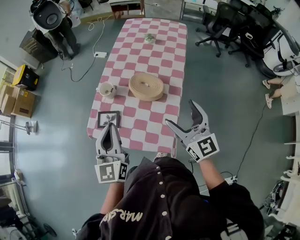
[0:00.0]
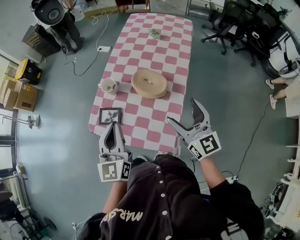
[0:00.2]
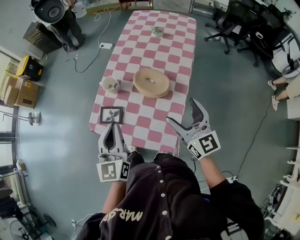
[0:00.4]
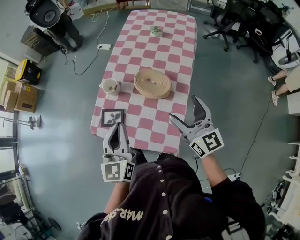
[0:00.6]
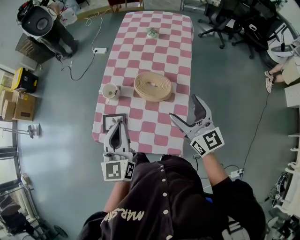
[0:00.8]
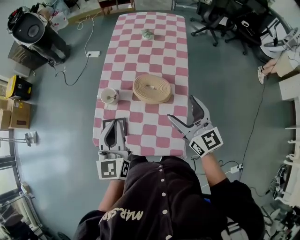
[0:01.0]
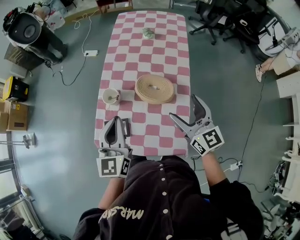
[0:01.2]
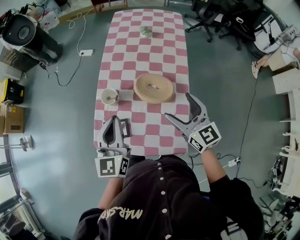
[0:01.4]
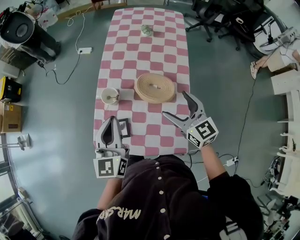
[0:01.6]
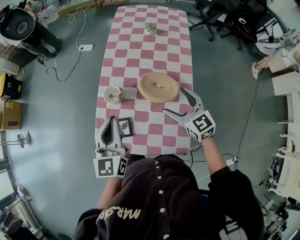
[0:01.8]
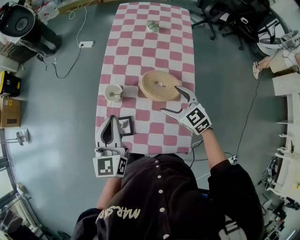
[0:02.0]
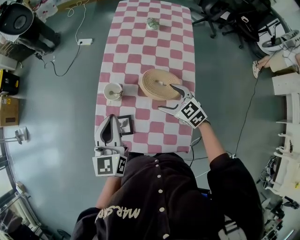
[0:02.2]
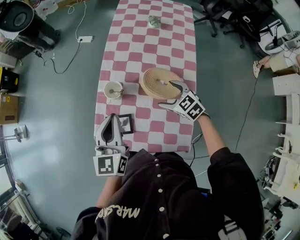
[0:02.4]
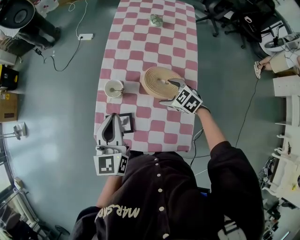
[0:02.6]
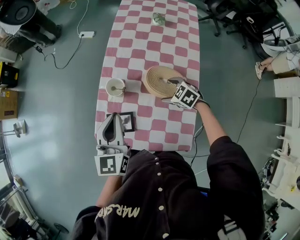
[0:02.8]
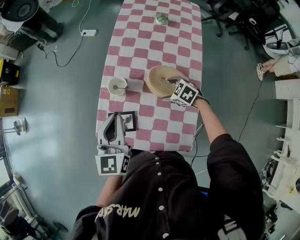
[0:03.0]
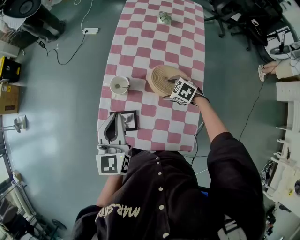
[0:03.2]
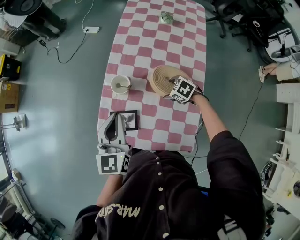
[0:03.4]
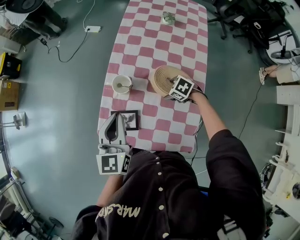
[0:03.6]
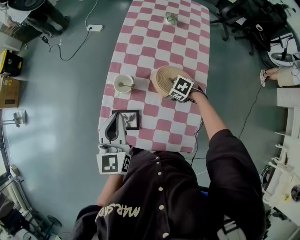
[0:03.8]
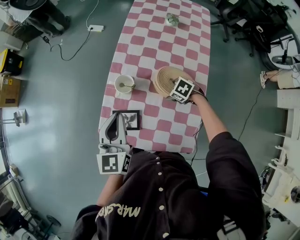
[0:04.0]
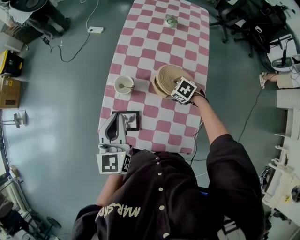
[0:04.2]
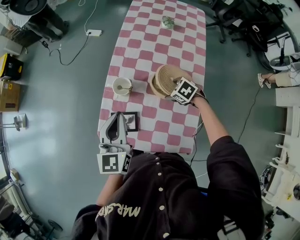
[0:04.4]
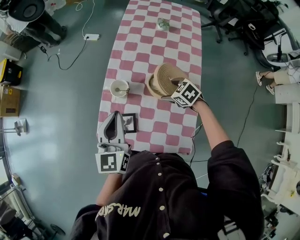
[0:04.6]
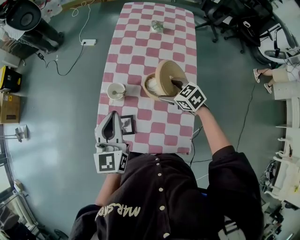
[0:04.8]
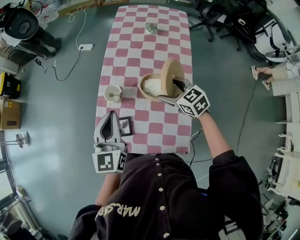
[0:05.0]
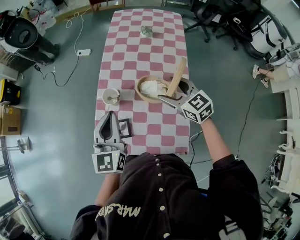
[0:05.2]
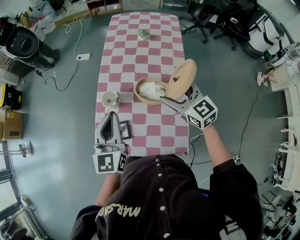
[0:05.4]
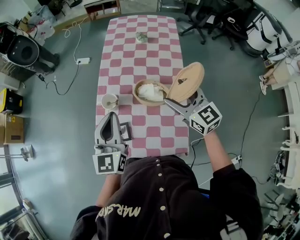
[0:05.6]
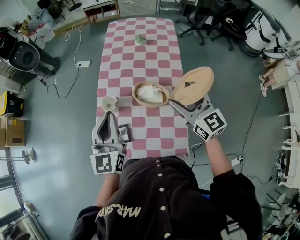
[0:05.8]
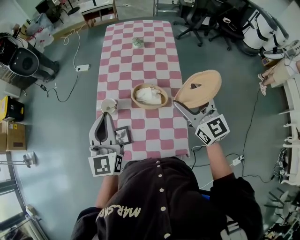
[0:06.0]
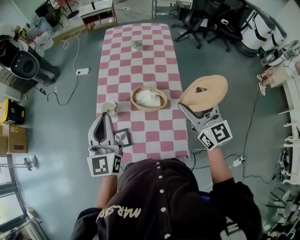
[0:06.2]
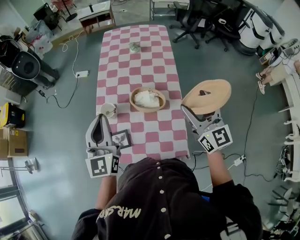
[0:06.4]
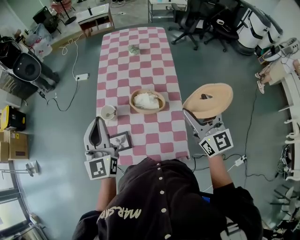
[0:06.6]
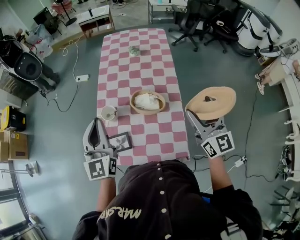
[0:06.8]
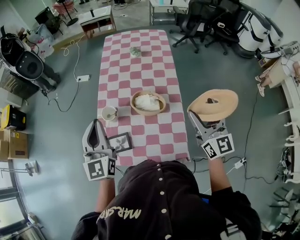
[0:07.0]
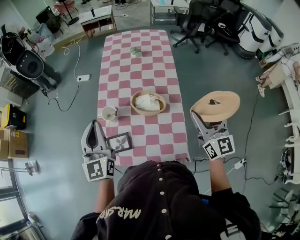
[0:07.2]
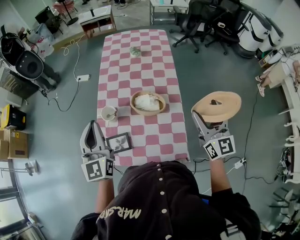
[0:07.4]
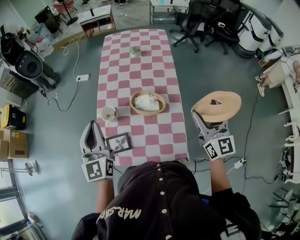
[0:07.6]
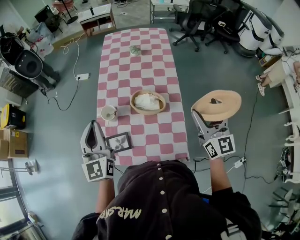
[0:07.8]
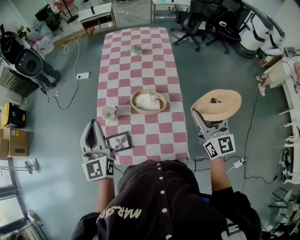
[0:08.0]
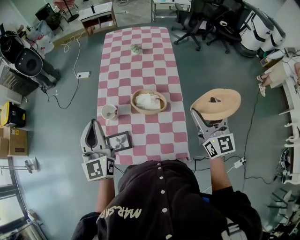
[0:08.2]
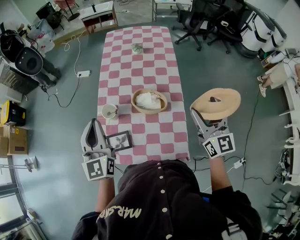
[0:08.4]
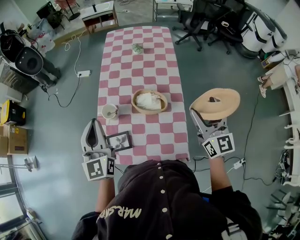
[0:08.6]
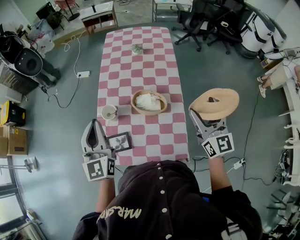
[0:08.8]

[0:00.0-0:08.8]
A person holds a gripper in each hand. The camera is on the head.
0:00.0 to 0:01.4: The left gripper is displaced forward by roughly 15 cm, while the right gripper shifts about 10 cm forward and to the left.
0:01.4 to 0:03.0: The right gripper goes some 25 cm downward, and angles its fingers downward, by some 50 degrees. The left gripper moves about 5 cm.
0:03.0 to 0:04.4: There are only small adjustments of the grippers.
0:04.4 to 0:05.8: The left gripper travels upward by some 10 cm. The right gripper goes some 30 cm upward, and tilts its fingers approximately 70 degrees upward.
0:05.8 to 0:07.4: The right gripper is displaced to the right and backward by roughly 15 cm, and rotates roughly 20 degrees. Meanwhile the left gripper ends up approximately 5 cm from where it was.
0:07.4 to 0:08.8: The grippers move only a little.

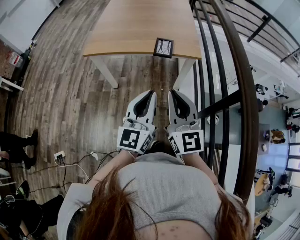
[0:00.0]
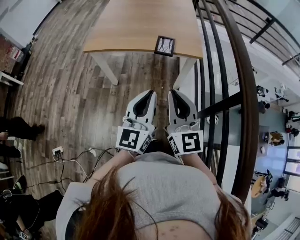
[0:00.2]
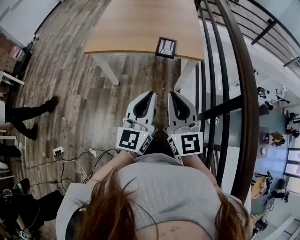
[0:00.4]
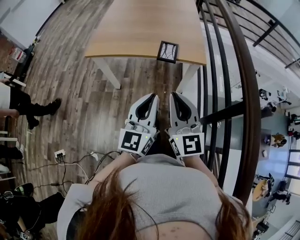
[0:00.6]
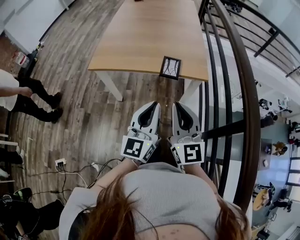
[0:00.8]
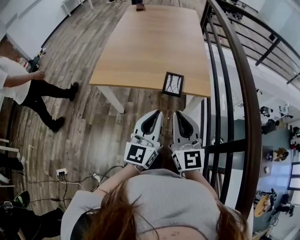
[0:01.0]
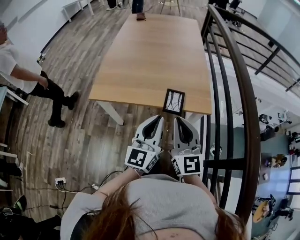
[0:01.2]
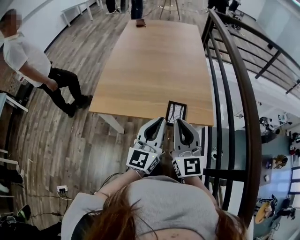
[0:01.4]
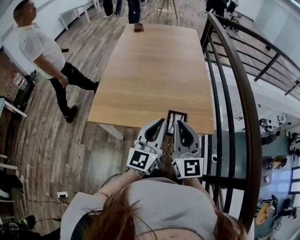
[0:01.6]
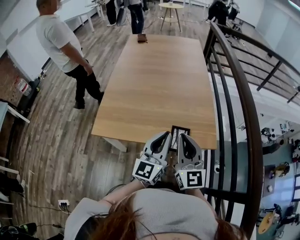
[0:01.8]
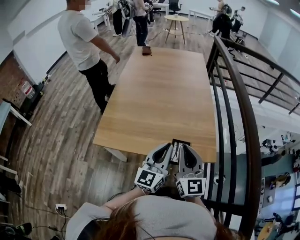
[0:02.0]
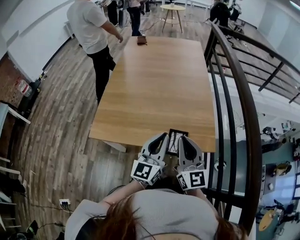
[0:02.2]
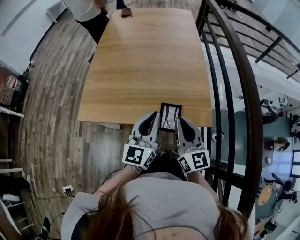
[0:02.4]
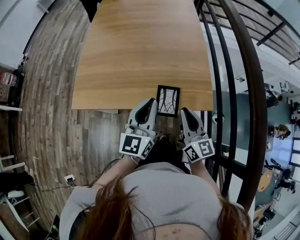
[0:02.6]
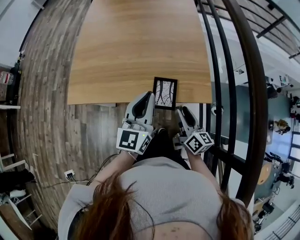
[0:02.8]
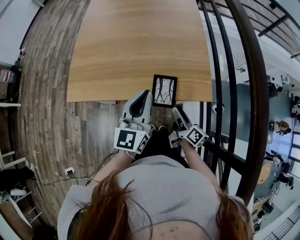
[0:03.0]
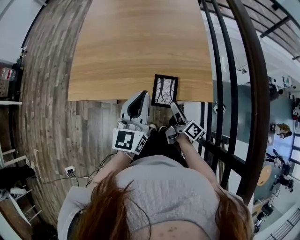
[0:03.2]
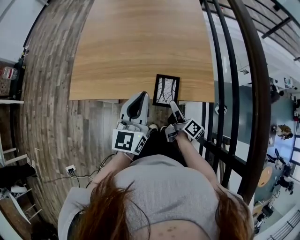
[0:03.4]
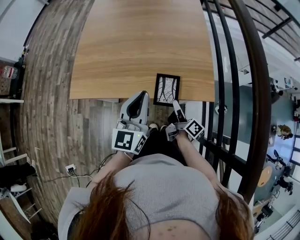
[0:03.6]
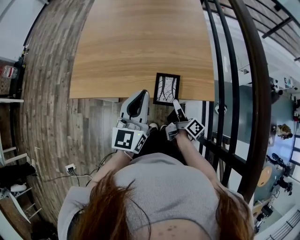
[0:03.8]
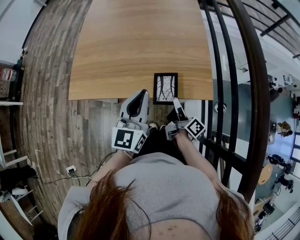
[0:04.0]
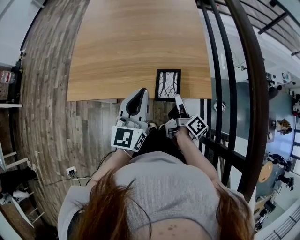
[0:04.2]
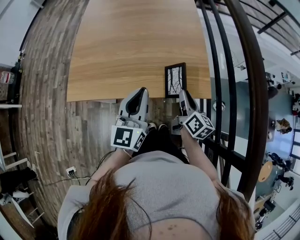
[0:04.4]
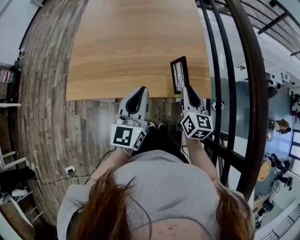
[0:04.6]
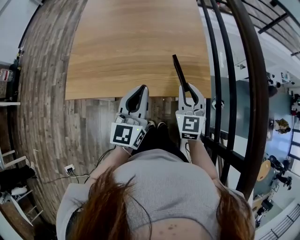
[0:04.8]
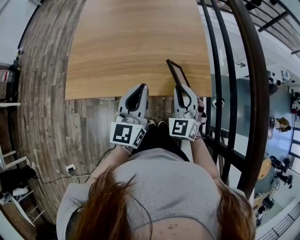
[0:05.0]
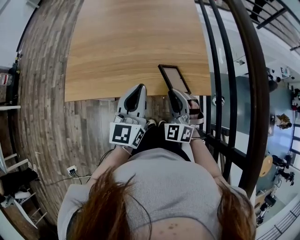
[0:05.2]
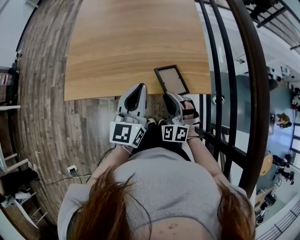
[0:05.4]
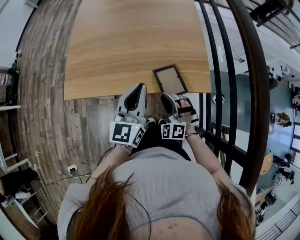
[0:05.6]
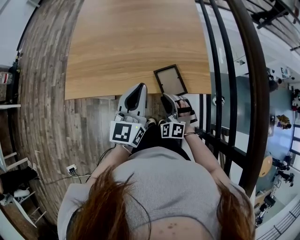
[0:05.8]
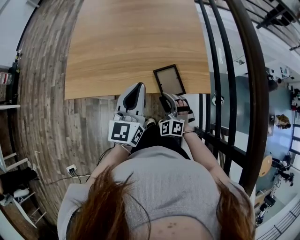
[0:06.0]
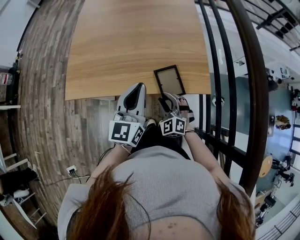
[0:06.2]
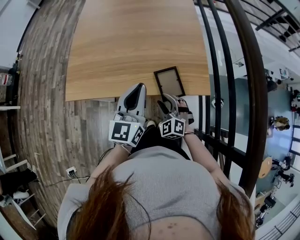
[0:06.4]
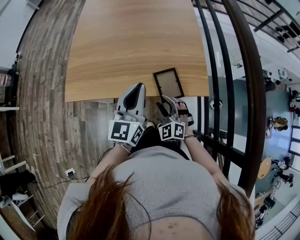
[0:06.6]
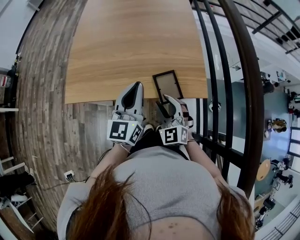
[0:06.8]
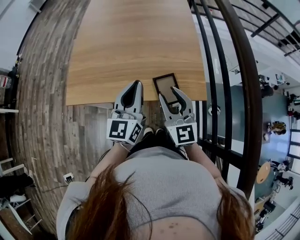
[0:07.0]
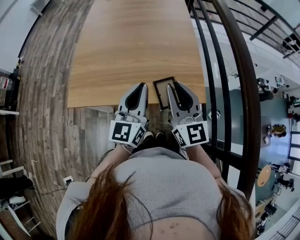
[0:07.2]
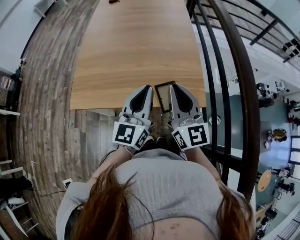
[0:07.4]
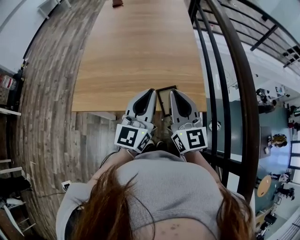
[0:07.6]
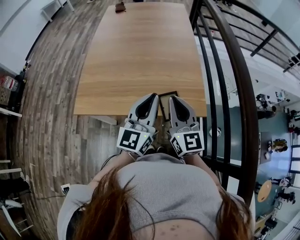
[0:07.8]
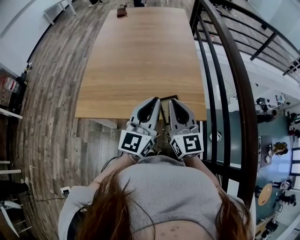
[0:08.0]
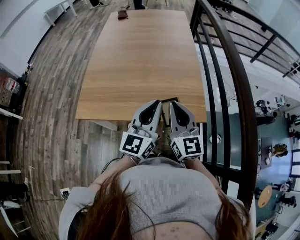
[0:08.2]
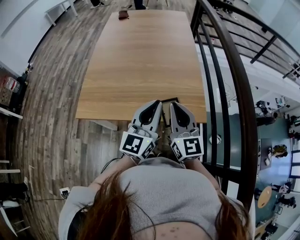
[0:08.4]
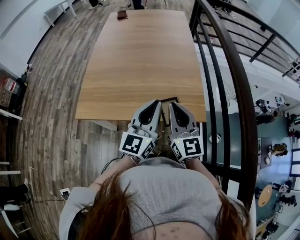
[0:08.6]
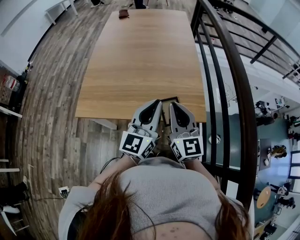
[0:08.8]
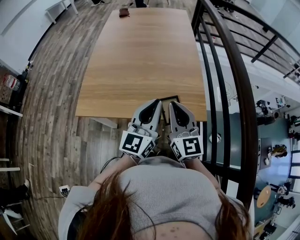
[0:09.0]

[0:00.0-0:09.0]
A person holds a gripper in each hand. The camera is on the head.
0:00.0 to 0:01.6: The two grippers go some 30 cm forward.
0:01.6 to 0:03.0: The right gripper goes roughly 25 cm downward, twists about 70 degrees clockwise, seen from behind, and opens. The left gripper moves downward, about 5 cm.
0:03.0 to 0:04.4: The right gripper shifts approximately 10 cm upward and forward, and closes.
0:04.4 to 0:06.0: The right gripper is displaced to the left and downward by some 15 cm, and twists roughly 100 degrees counterclockwise, seen from behind.
0:06.0 to 0:07.6: The right gripper heads upward, covering some 25 cm, rotates around the line of its fingers by approximately 50 degrees, clockwise from behind, and closes its fingers, while the left gripper is displaced upward by some 10 cm.
0:07.6 to 0:09.0: The grippers move only a little.

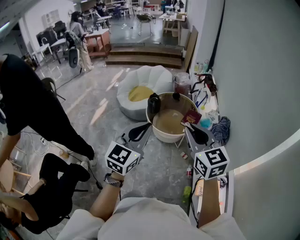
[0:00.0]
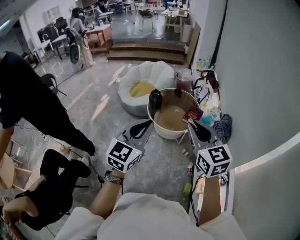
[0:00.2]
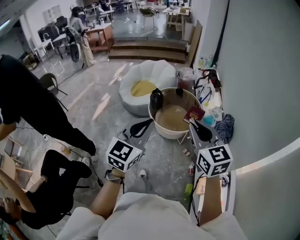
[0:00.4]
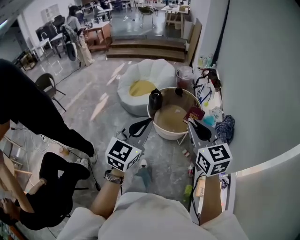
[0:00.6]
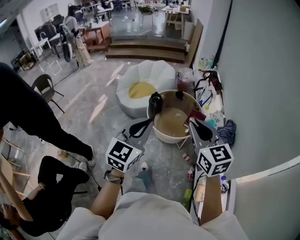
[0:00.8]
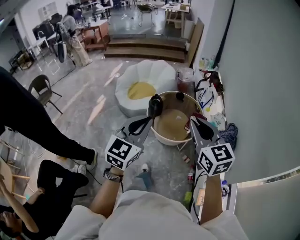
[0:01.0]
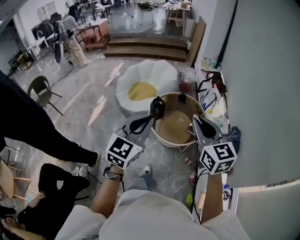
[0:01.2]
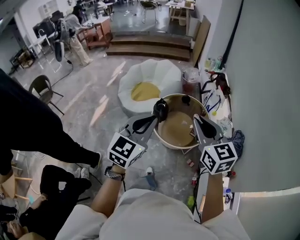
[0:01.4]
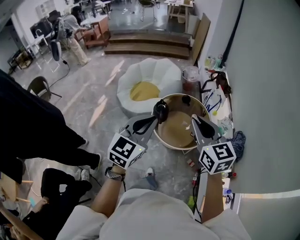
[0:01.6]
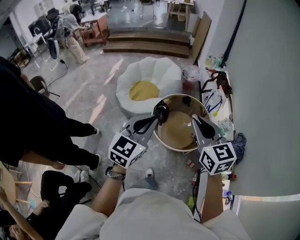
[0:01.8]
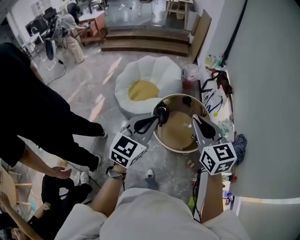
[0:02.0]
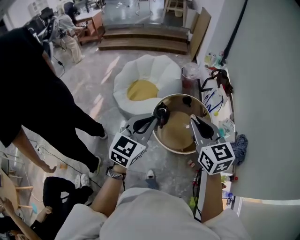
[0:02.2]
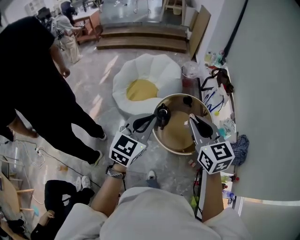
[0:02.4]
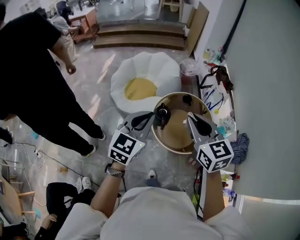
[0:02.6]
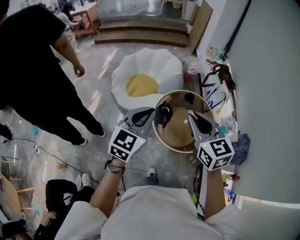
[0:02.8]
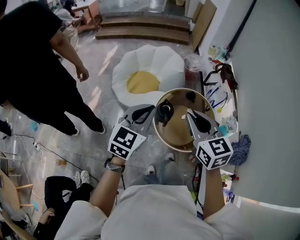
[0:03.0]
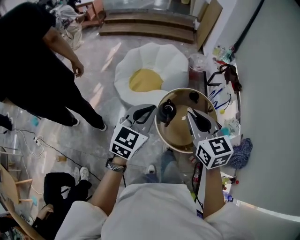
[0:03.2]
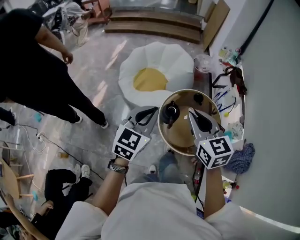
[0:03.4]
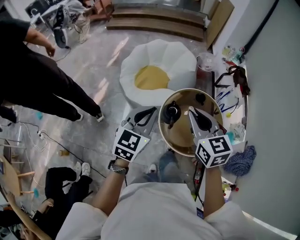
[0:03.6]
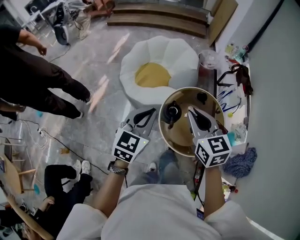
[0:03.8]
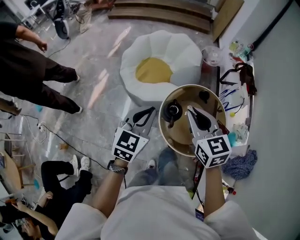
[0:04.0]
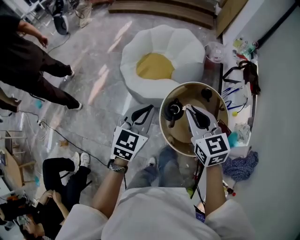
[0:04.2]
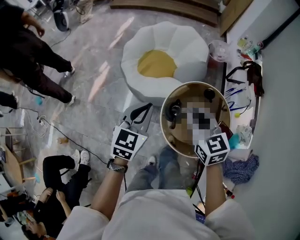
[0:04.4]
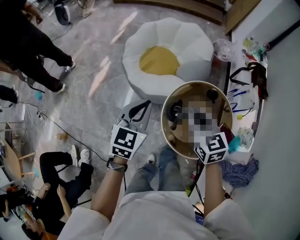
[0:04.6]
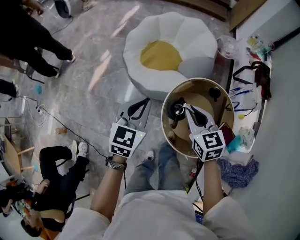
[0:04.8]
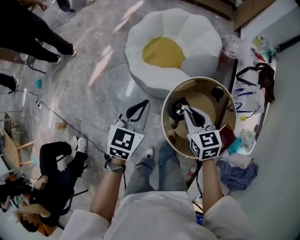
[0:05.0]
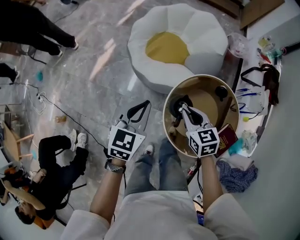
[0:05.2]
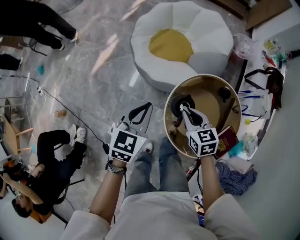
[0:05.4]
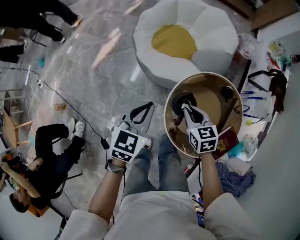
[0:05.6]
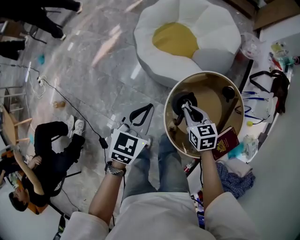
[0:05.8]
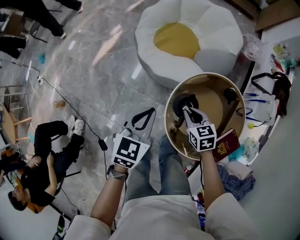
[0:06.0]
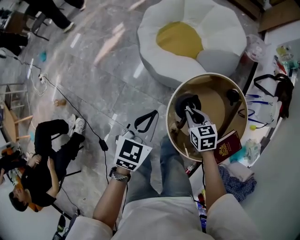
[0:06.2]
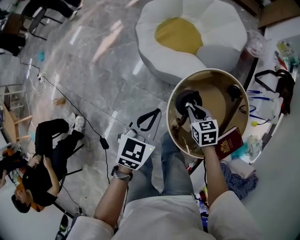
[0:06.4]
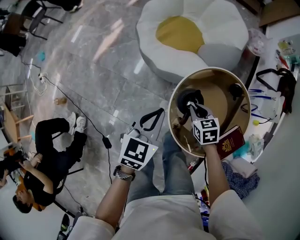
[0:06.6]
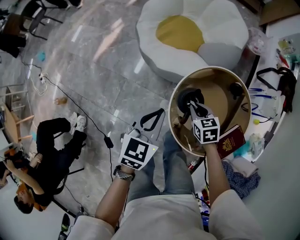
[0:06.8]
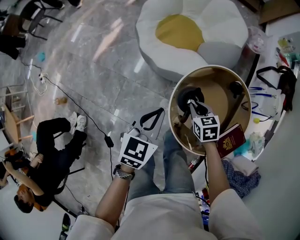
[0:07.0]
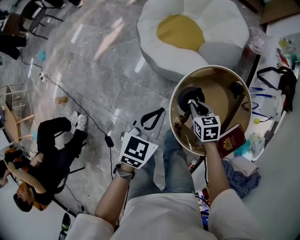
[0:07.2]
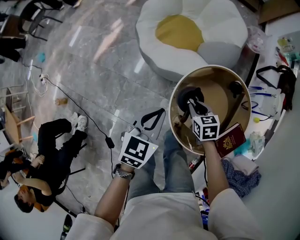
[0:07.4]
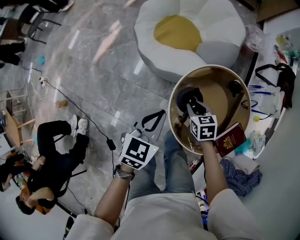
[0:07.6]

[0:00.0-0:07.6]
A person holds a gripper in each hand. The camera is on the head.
0:00.0 to 0:01.6: The grippers both shift forward by approximately 30 cm.
0:01.6 to 0:03.0: Both grippers travel together forward and to the left, about 20 cm.
0:03.0 to 0:04.6: The two grippers go roughly 25 cm forward and downward. The left gripper rotates about 20 degrees.
0:04.6 to 0:06.0: The left gripper heads downward, covering approximately 15 cm. The right gripper is displaced downward by about 25 cm, and changes its angle by roughly 20 degrees.
0:06.0 to 0:07.6: The grippers move only a little.
